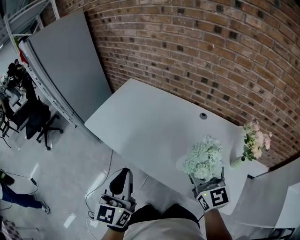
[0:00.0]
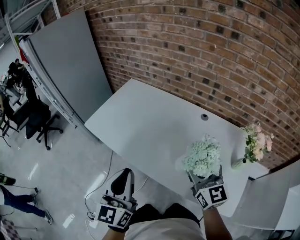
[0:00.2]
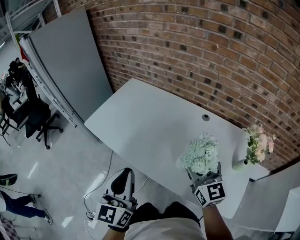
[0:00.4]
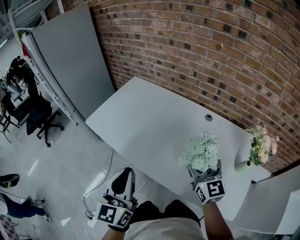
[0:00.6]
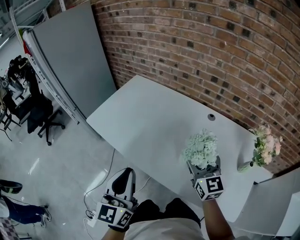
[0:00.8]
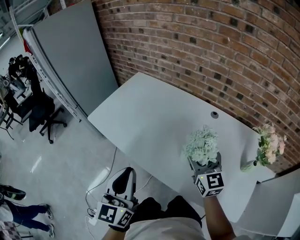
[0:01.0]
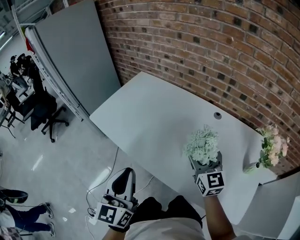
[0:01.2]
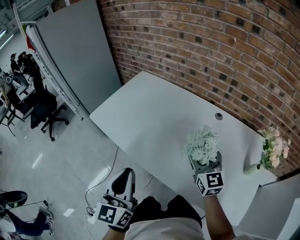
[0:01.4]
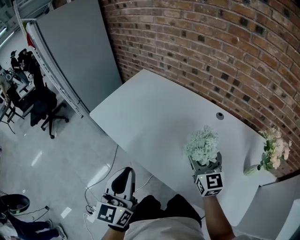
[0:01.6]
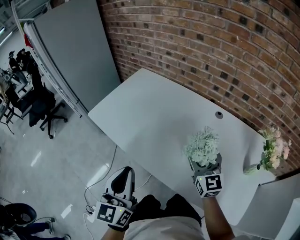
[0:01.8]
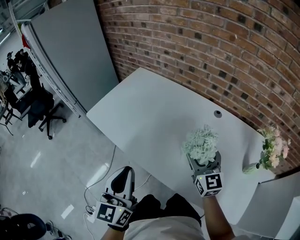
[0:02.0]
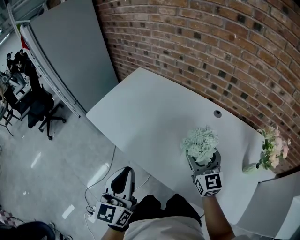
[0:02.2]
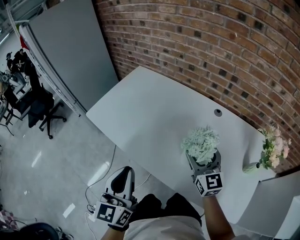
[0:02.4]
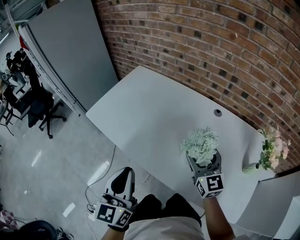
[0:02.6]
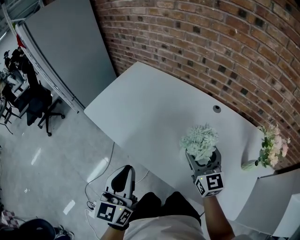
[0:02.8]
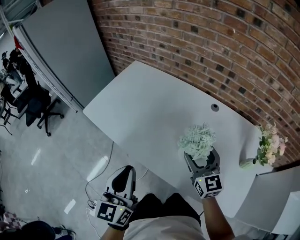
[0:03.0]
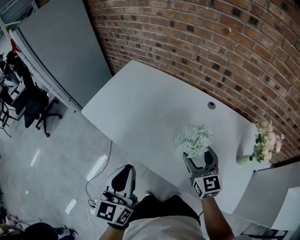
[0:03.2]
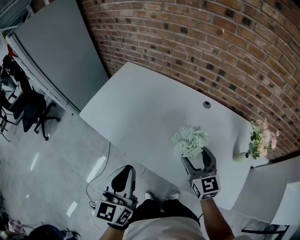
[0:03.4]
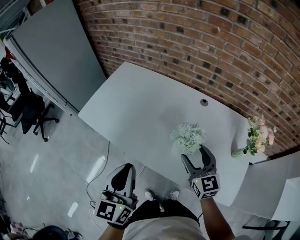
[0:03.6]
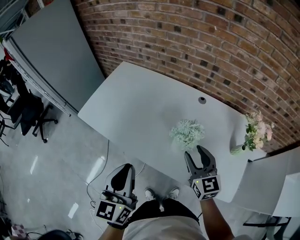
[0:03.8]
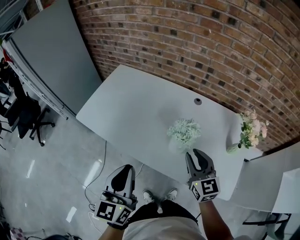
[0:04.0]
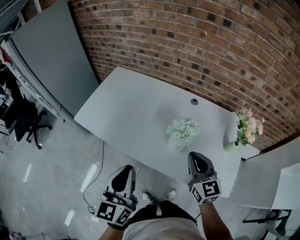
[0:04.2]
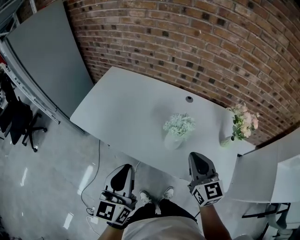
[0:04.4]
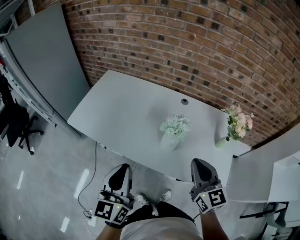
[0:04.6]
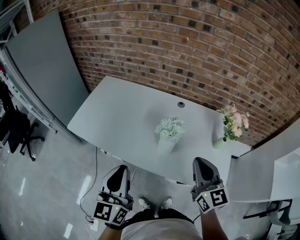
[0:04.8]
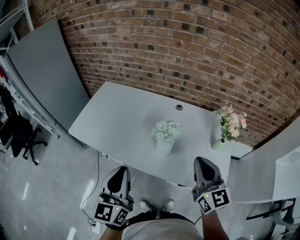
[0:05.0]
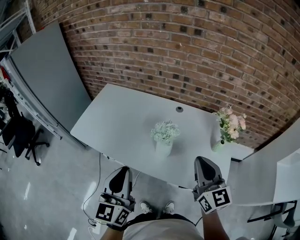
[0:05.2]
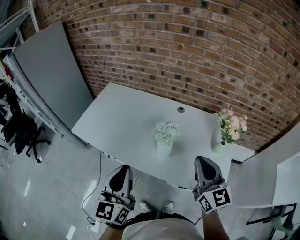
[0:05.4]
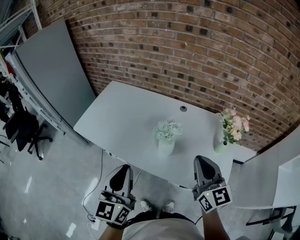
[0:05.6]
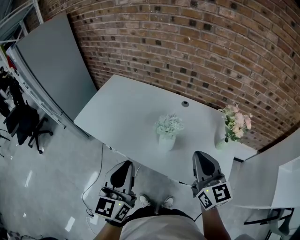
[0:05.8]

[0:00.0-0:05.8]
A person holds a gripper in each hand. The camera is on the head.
0:00.0 to 0:01.4: The right gripper is displaced downward and forward by roughly 15 cm. Meanwhile the left gripper shifts some 10 cm downward.
0:01.4 to 0:02.8: The grippers make only small movements.
0:02.8 to 0:04.4: The left gripper shifts some 5 cm upward, while the right gripper is displaced backward and upward by some 15 cm, and closes its fingers.
0:04.4 to 0:05.8: The right gripper heads upward and to the right, covering roughly 10 cm, while the left gripper is displaced to the right by about 5 cm.

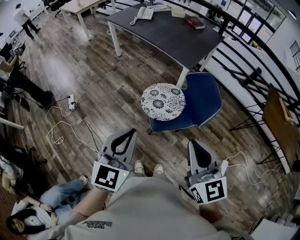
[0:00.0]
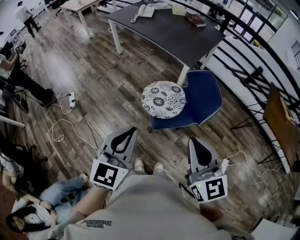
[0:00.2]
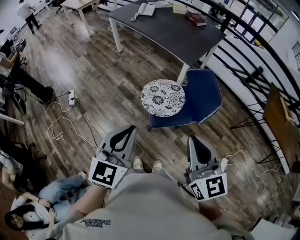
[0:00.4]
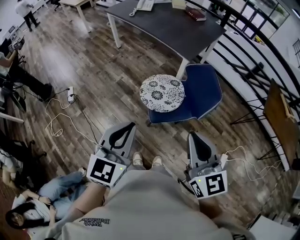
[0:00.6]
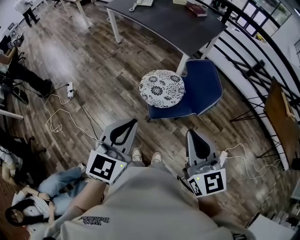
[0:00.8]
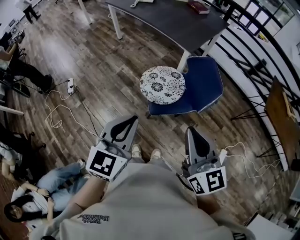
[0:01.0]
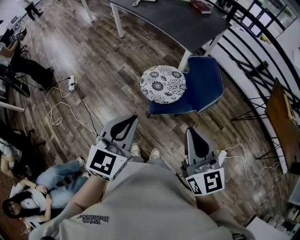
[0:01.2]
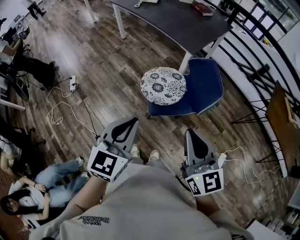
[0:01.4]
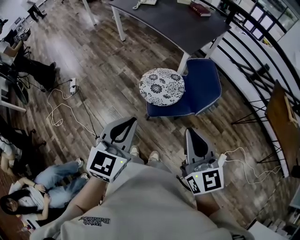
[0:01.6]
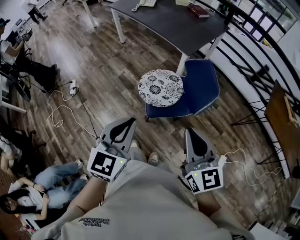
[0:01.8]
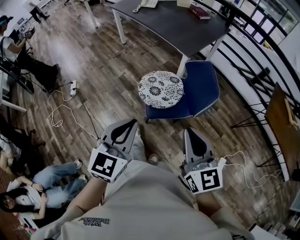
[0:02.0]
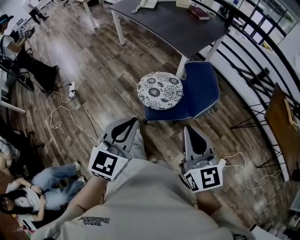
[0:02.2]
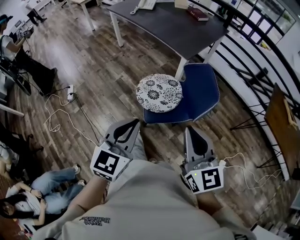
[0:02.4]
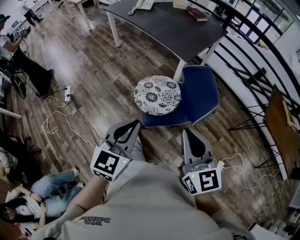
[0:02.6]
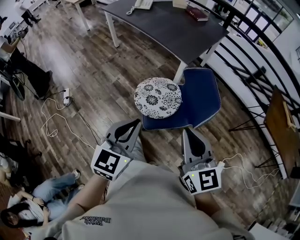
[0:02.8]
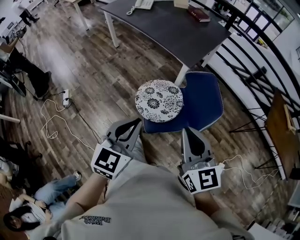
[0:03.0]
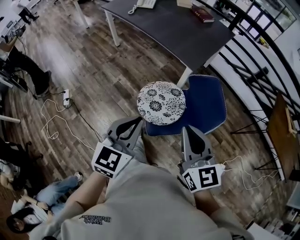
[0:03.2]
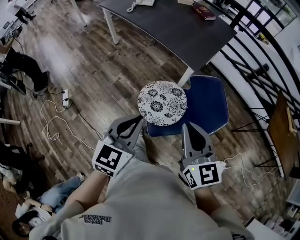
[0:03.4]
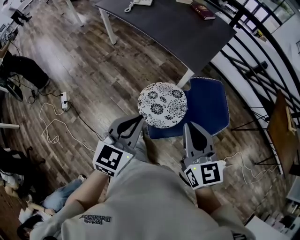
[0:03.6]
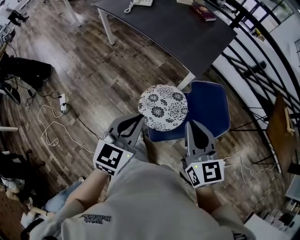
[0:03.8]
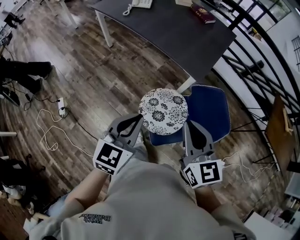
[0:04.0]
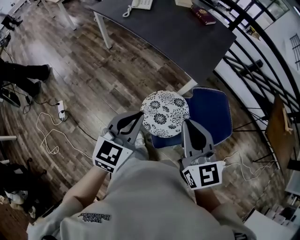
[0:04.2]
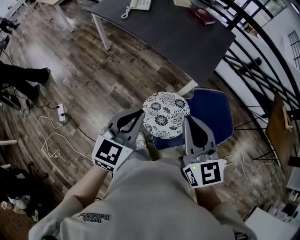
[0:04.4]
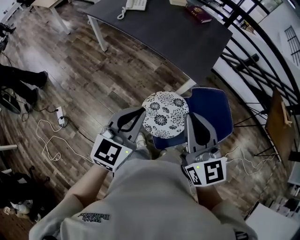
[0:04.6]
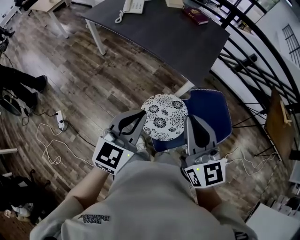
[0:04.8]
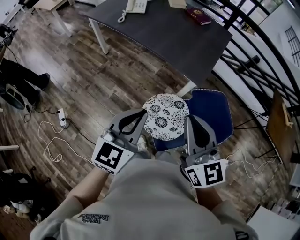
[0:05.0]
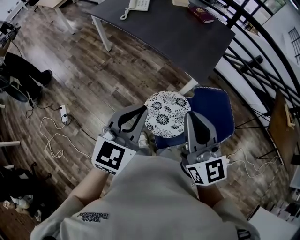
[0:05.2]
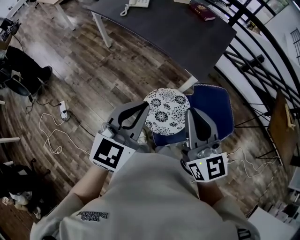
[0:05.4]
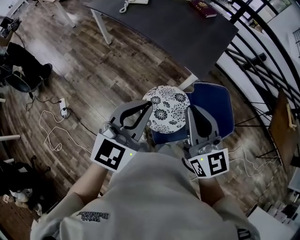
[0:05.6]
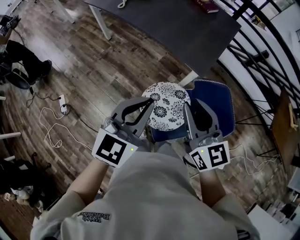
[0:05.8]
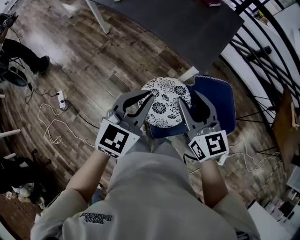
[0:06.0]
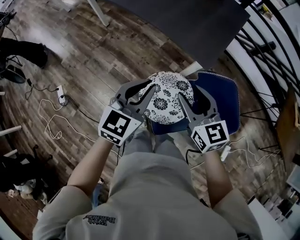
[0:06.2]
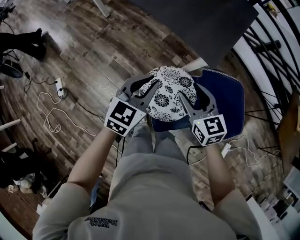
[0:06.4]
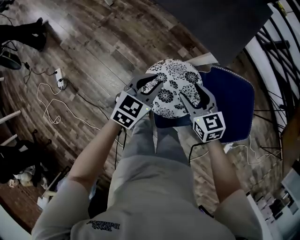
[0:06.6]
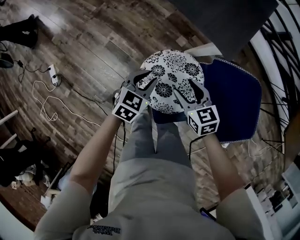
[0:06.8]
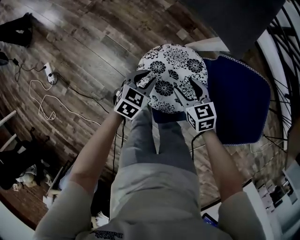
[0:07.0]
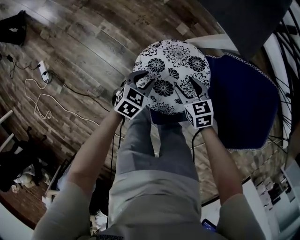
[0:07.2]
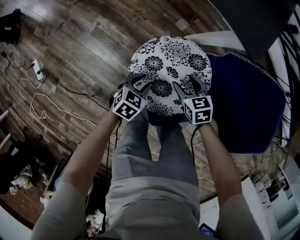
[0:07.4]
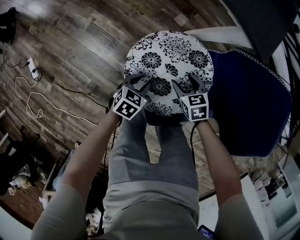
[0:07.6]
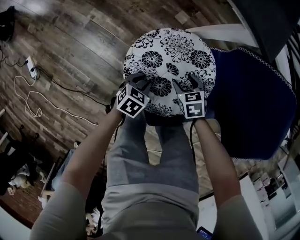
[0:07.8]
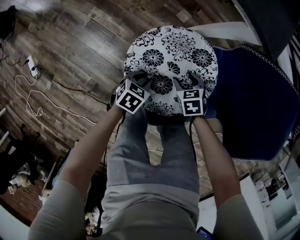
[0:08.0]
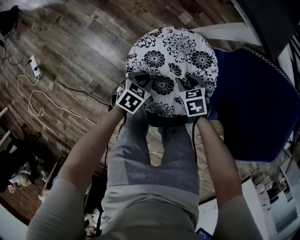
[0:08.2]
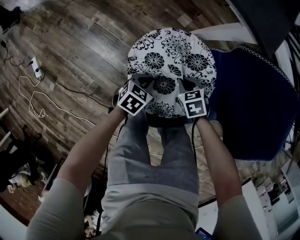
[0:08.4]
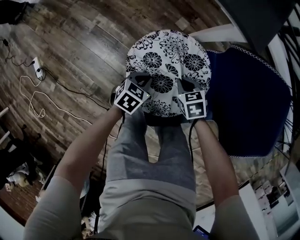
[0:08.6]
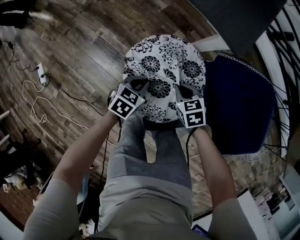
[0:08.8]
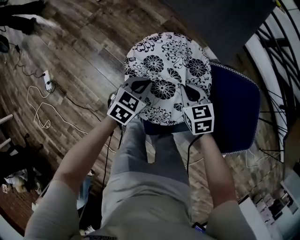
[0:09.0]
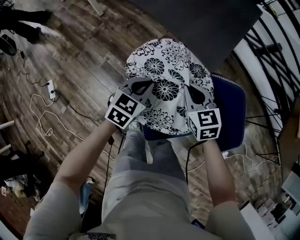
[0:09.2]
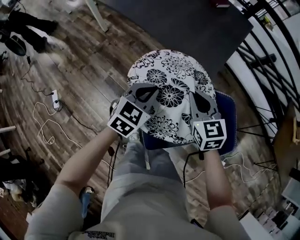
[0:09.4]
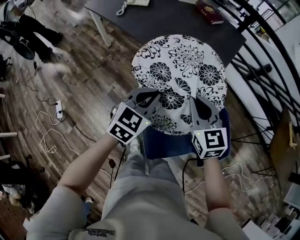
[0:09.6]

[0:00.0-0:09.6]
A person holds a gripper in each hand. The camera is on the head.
0:00.0 to 0:01.6: Both grippers travel together to the right, approximately 5 cm.
0:01.6 to 0:03.2: Both grippers travel together forward, roughly 20 cm.
0:03.2 to 0:04.8: Both grippers move forward and to the left, roughly 20 cm.
0:04.8 to 0:06.4: The right gripper travels downward and forward by approximately 25 cm, rotates about 30 degrees, and opens its fingers; the left gripper goes roughly 20 cm downward, forward and to the right.
0:06.4 to 0:08.0: The two grippers go approximately 50 cm downward. The left gripper tilts its fingers about 30 degrees downward; the right gripper points its fingers some 40 degrees further downward.
0:08.0 to 0:09.6: The two grippers go about 20 cm upward. The left gripper swivels approximately 20 degrees, and closes up. The right gripper closes.

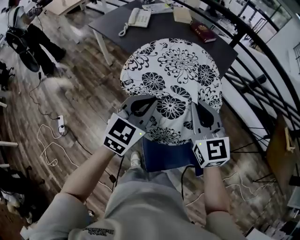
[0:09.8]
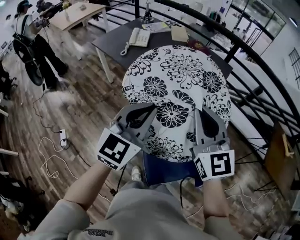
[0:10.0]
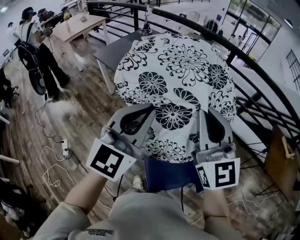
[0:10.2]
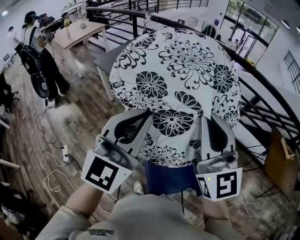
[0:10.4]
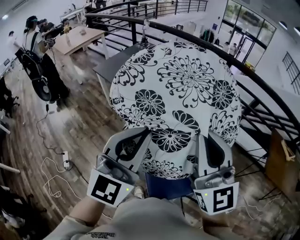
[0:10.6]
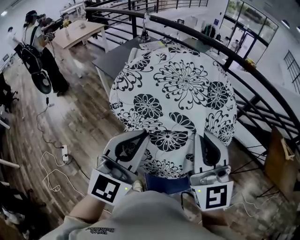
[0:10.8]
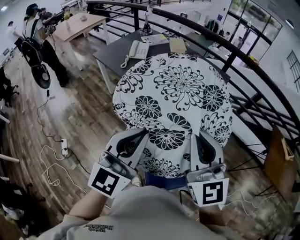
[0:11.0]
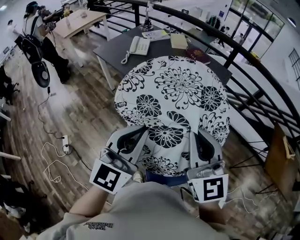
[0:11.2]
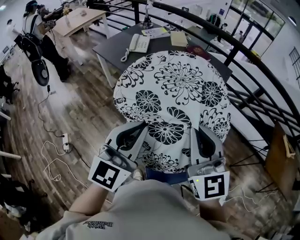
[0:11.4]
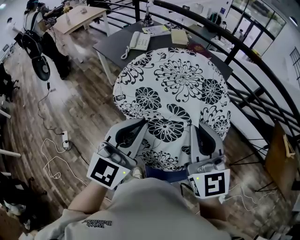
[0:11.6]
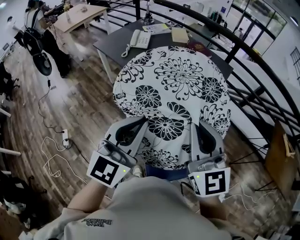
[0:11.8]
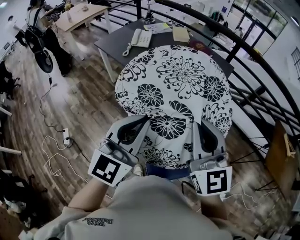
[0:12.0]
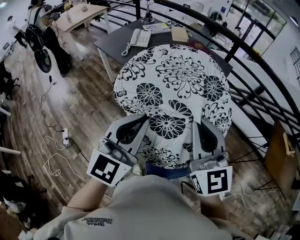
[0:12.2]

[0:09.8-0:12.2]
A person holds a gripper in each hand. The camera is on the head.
0:09.8 to 0:11.0: The left gripper rotates some 20 degrees.
0:11.0 to 0:12.2: The grippers stay close to where they were, moving slightly.

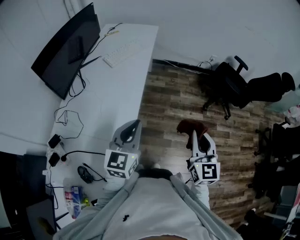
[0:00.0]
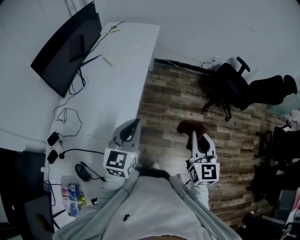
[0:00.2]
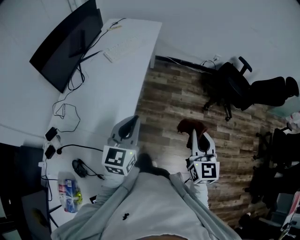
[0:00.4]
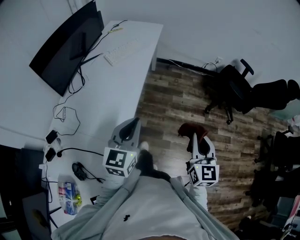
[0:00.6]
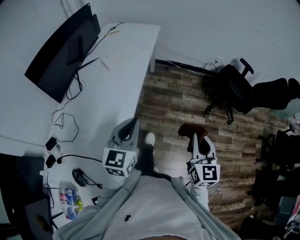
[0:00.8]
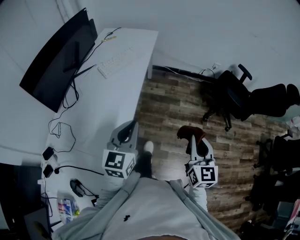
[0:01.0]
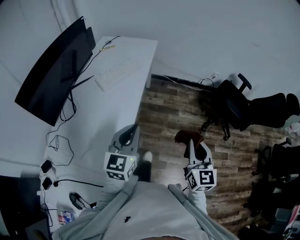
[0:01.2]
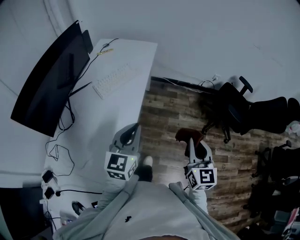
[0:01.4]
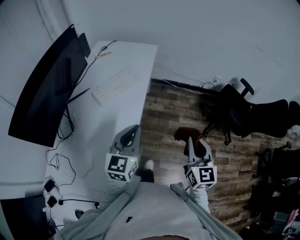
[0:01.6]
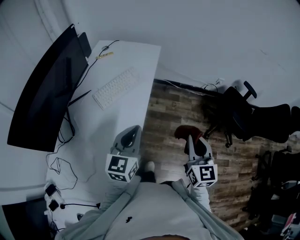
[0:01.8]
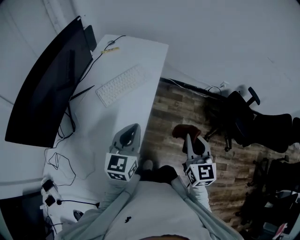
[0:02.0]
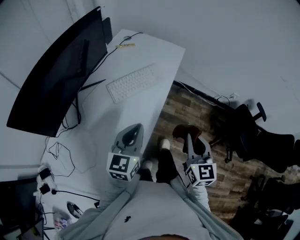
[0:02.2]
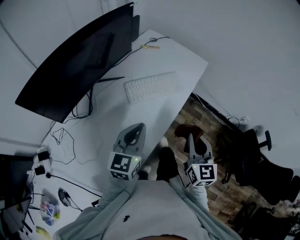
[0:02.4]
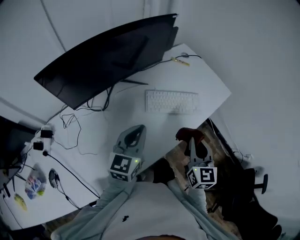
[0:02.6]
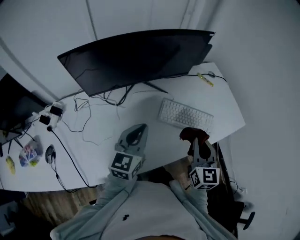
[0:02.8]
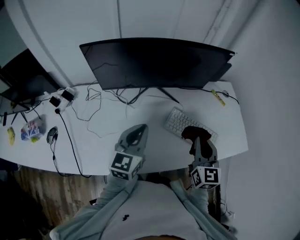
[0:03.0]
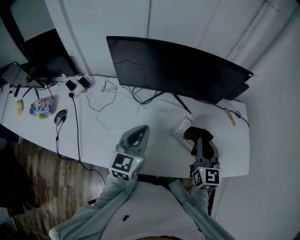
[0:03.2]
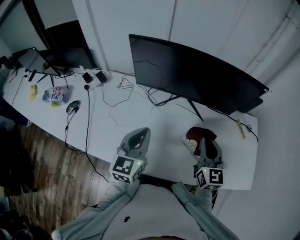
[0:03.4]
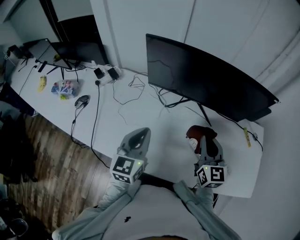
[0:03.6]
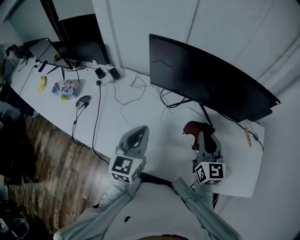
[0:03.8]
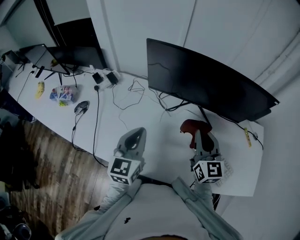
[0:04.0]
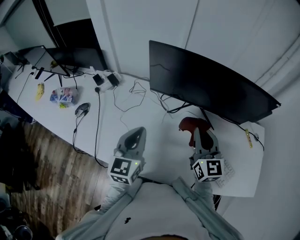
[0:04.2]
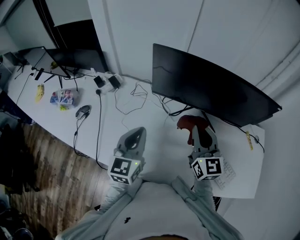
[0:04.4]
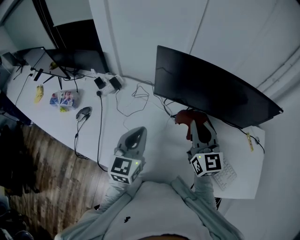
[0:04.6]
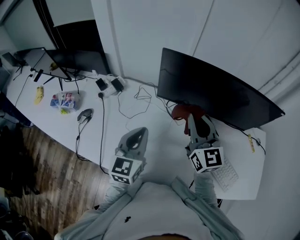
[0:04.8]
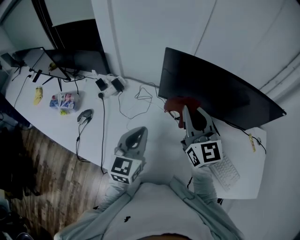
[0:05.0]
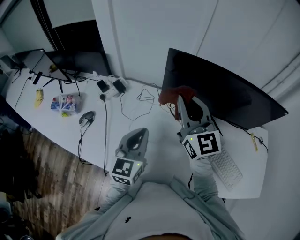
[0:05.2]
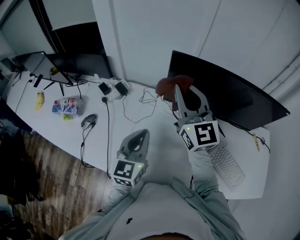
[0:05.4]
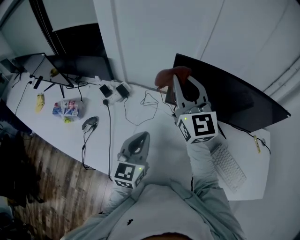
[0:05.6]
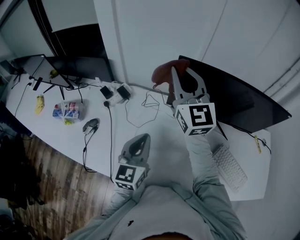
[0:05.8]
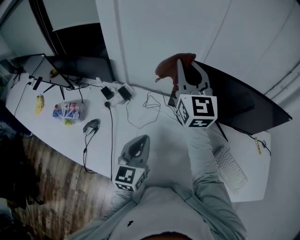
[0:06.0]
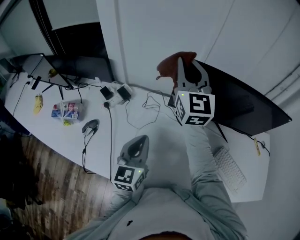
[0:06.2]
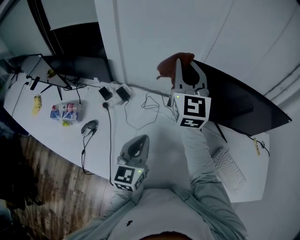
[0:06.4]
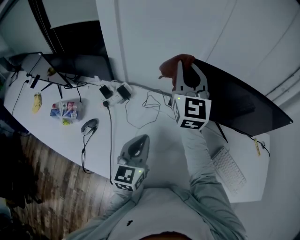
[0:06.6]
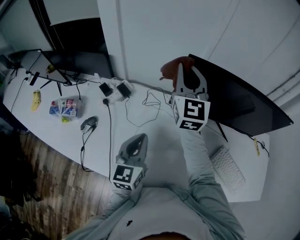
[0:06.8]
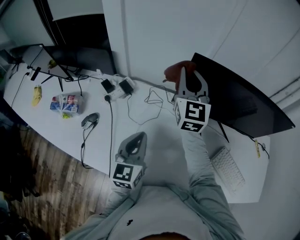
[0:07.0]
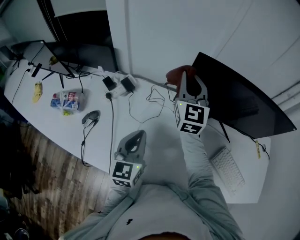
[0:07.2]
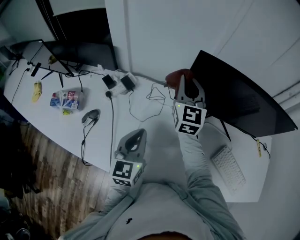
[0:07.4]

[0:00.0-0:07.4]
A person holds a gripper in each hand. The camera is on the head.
0:00.0 to 0:01.4: Both grippers travel together forward, about 25 cm.
0:01.4 to 0:03.0: The left gripper moves roughly 25 cm, and rotates some 70 degrees. The right gripper moves roughly 50 cm, and swivels roughly 70 degrees.
0:03.0 to 0:04.4: The right gripper ends up roughly 25 cm from where it was, and swivels about 30 degrees. Meanwhile the left gripper moves roughly 15 cm, and turns by approximately 30 degrees.
0:04.4 to 0:06.0: The left gripper travels to the left by roughly 10 cm; the right gripper goes roughly 30 cm forward, to the left and upward.
0:06.0 to 0:07.4: The right gripper moves downward, roughly 15 cm.
